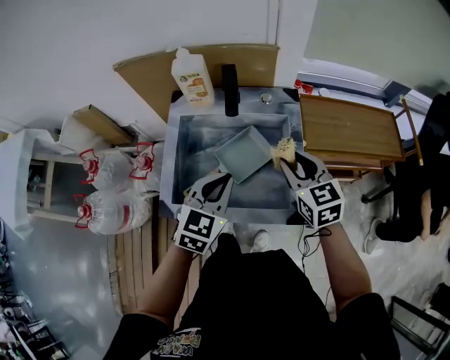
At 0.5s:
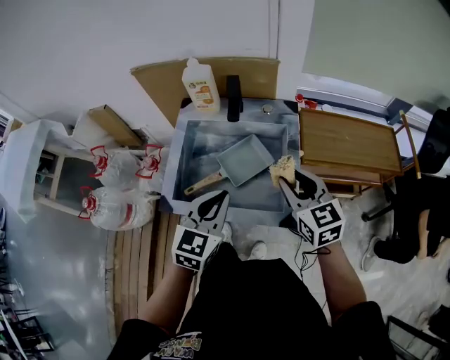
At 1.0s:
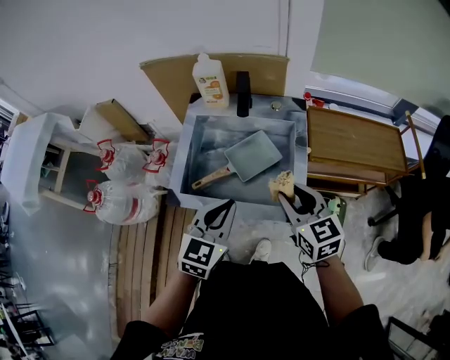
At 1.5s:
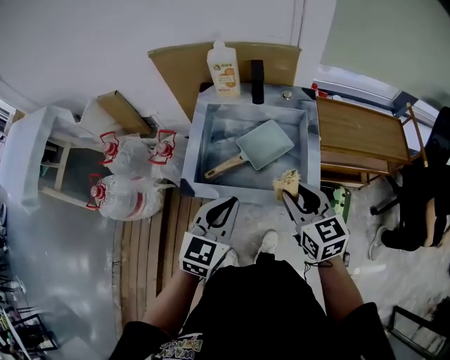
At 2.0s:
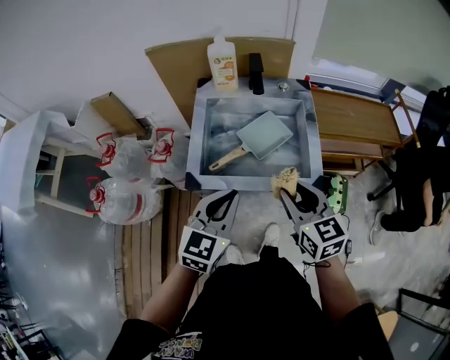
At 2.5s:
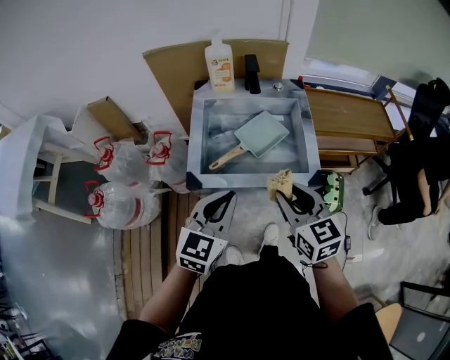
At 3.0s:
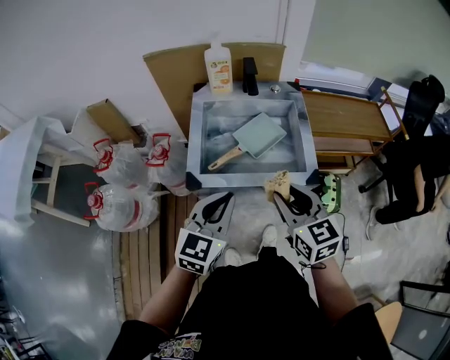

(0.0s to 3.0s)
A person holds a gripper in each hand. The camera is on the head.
0.0s - 1.5s: The two grippers go roughly 15 cm backward and to the left.
1.5s - 3.0s: Both grippers travel together backward and to the left, approximately 10 cm.

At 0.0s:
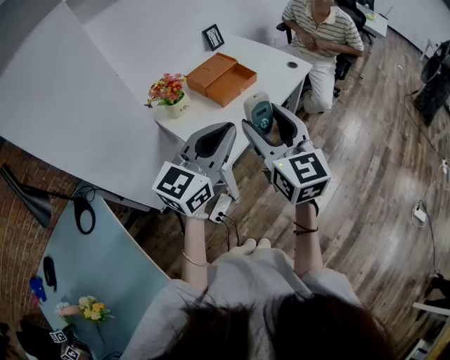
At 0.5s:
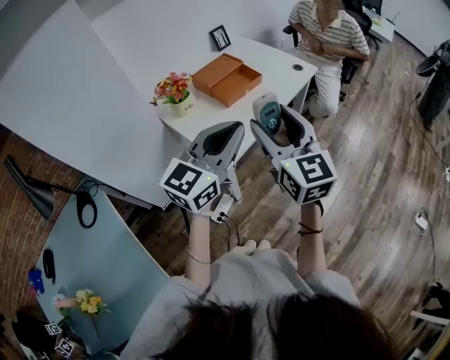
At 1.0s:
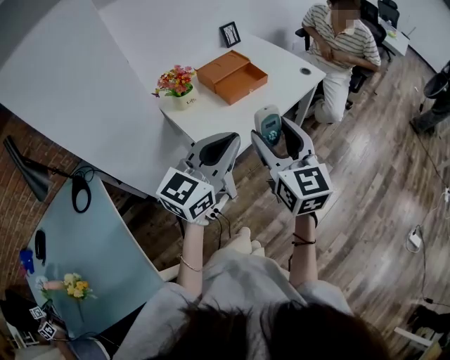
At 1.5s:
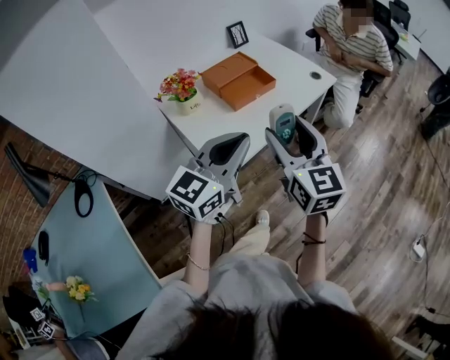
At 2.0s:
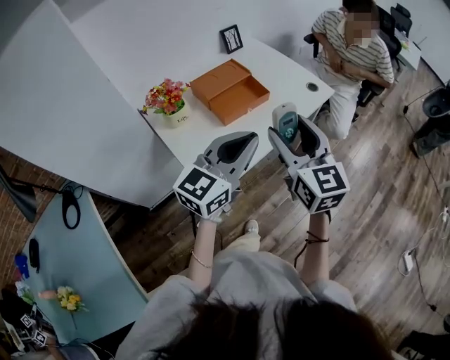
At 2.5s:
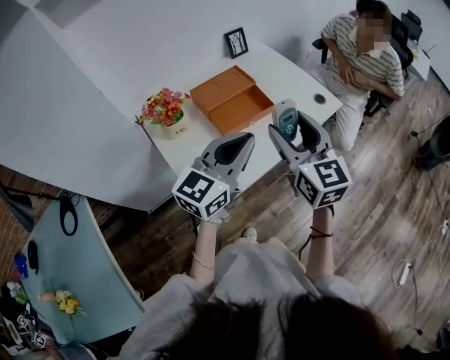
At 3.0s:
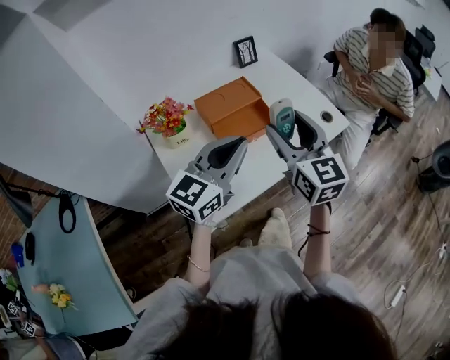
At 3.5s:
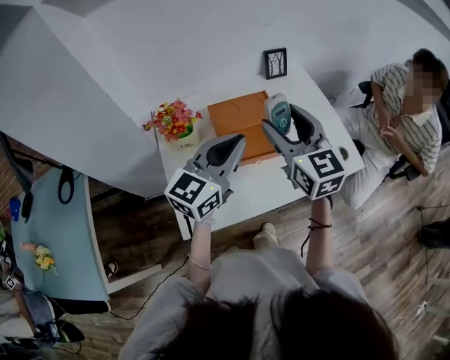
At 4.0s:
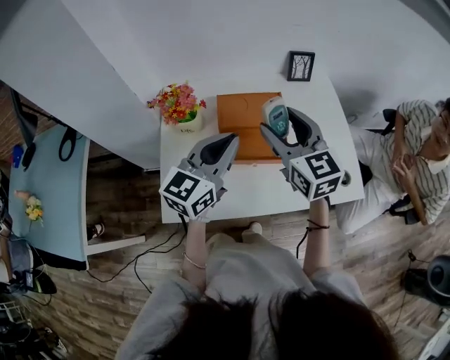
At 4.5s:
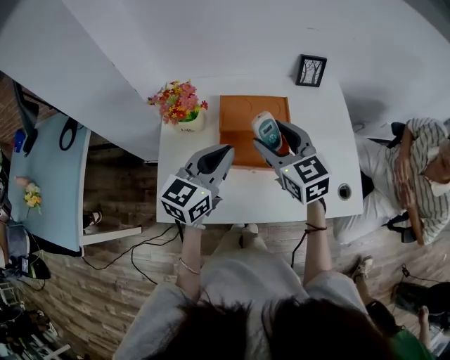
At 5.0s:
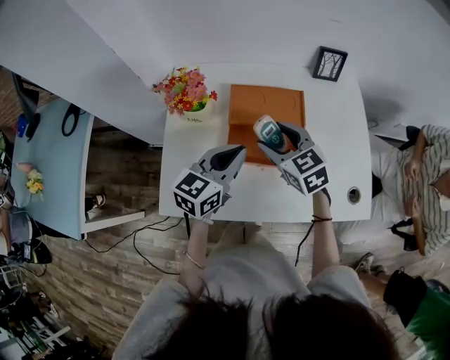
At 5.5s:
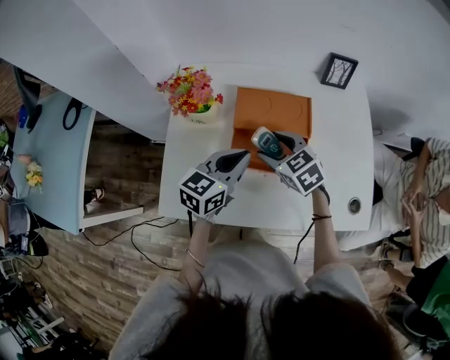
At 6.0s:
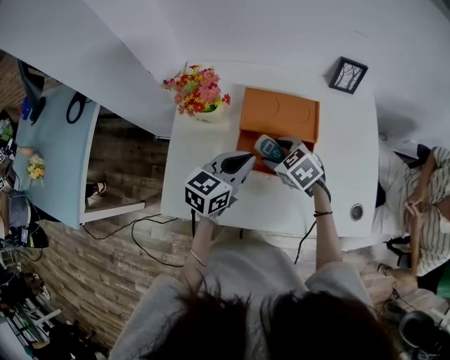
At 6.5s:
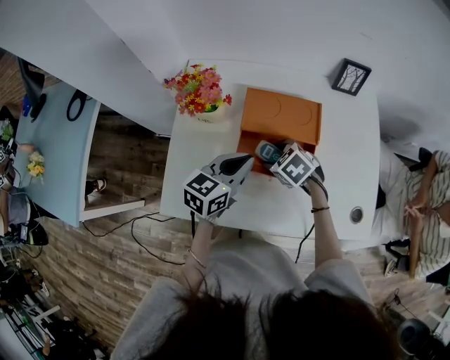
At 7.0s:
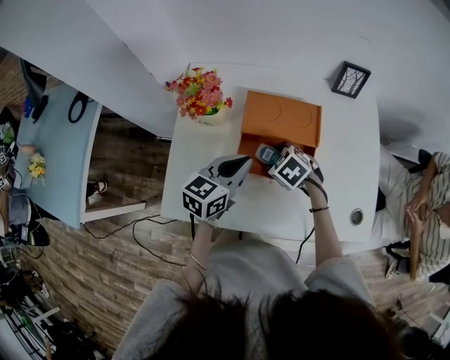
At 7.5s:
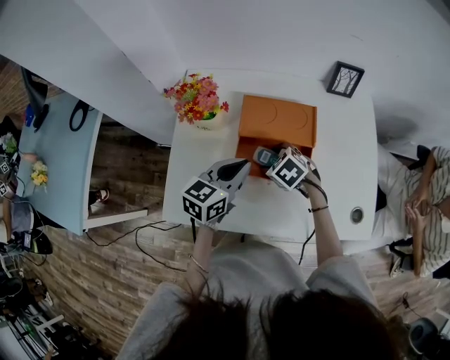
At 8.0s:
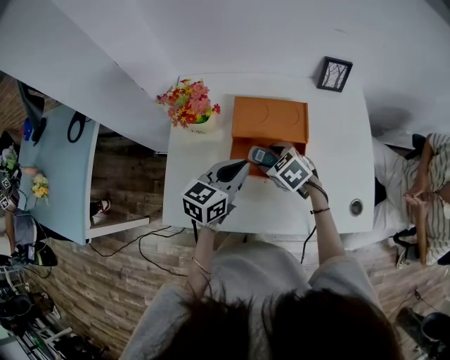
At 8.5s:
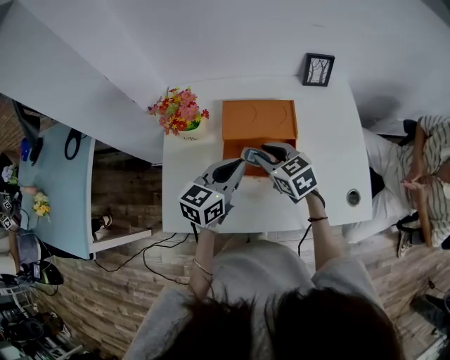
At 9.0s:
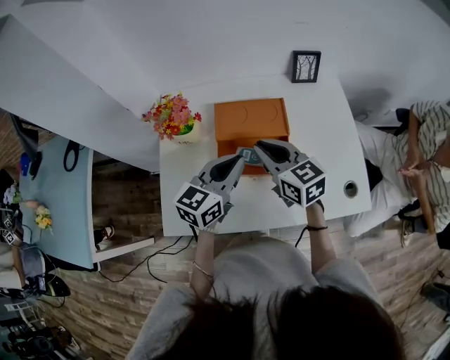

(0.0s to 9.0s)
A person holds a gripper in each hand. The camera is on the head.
0.0s - 2.0s: The two grippers go some 15 cm forward.
2.0s - 4.5s: The left gripper shifts by roughly 25 cm, and rotates approximately 50 degrees. The right gripper shifts by roughly 35 cm, and rotates approximately 50 degrees.
4.5s - 7.0s: The left gripper travels downward by roughly 10 cm; the right gripper goes approximately 25 cm downward, and tilts its fingers some 50 degrees downward.
7.0s - 9.0s: The right gripper heads upward, covering some 20 cm, angles its fingers upward, by roughly 50 degrees, and closes, while the left gripper moves upward, some 5 cm.

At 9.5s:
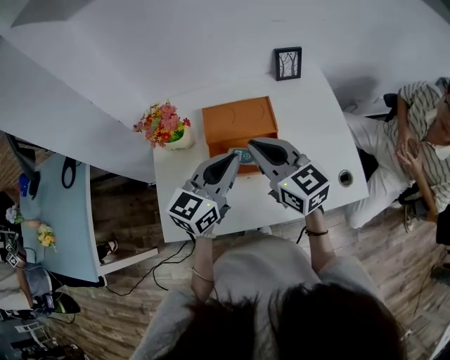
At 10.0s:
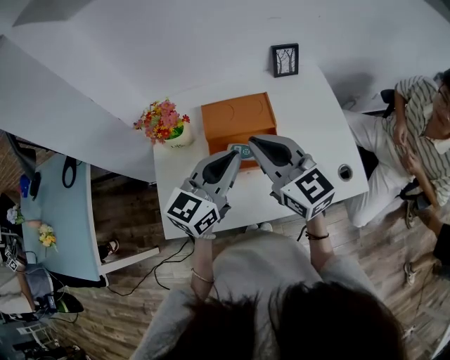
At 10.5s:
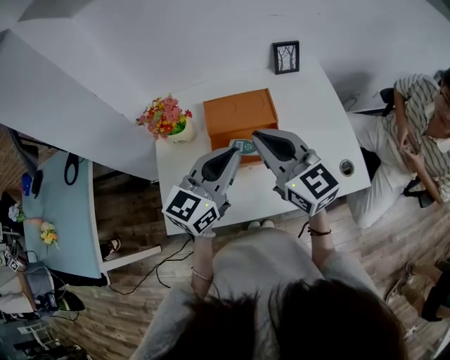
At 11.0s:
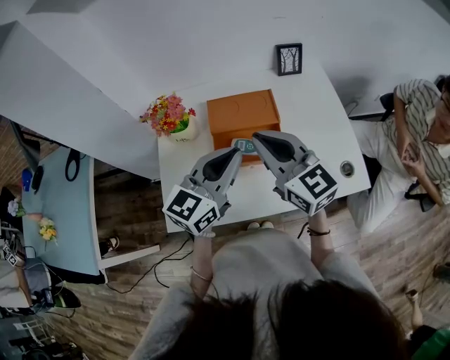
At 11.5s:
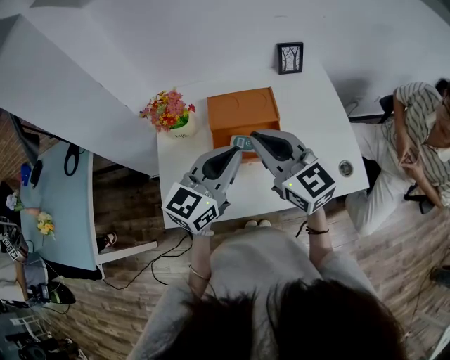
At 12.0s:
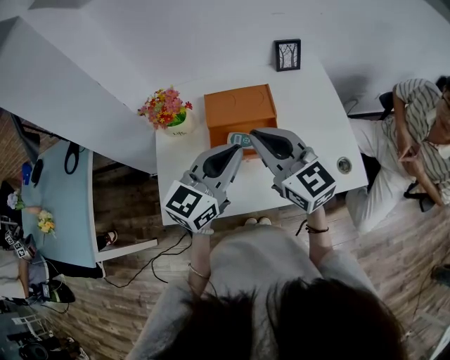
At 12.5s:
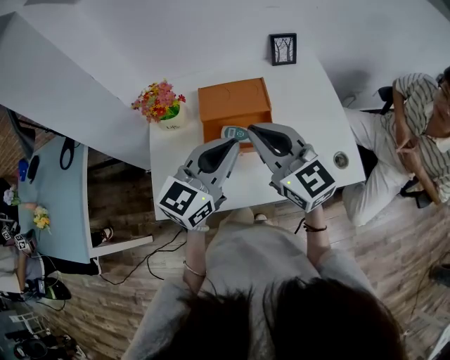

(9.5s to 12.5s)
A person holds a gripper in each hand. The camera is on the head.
9.5s - 11.0s: The right gripper ends up approximately 5 cm from where it was. Meanwhile the left gripper moves roughly 5 cm.
11.0s - 12.5s: The grippers make only small movements.

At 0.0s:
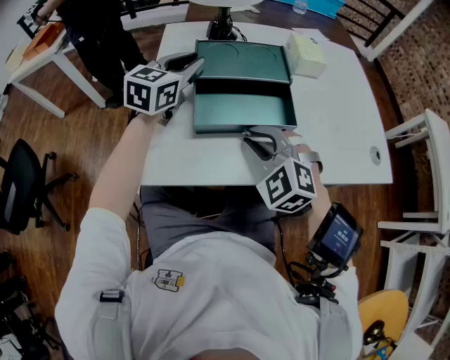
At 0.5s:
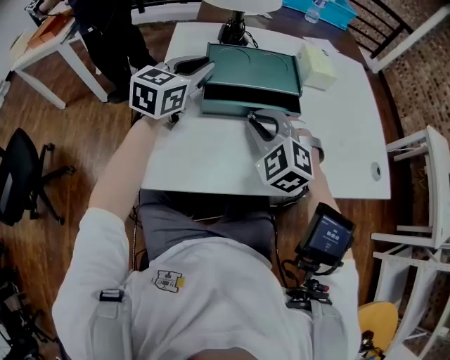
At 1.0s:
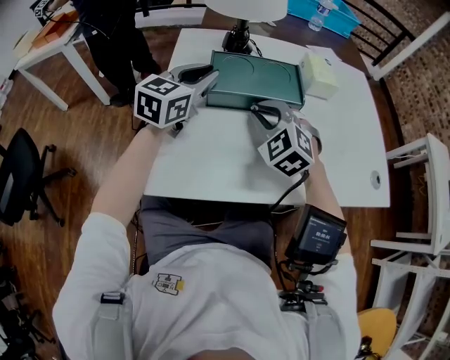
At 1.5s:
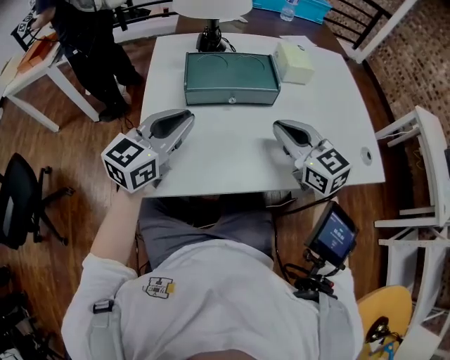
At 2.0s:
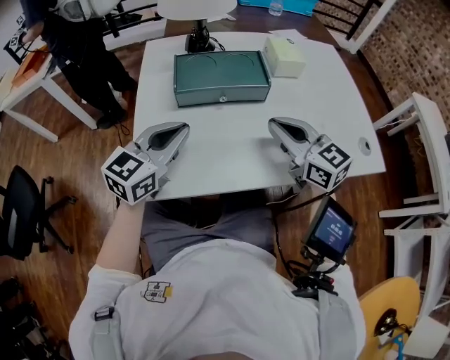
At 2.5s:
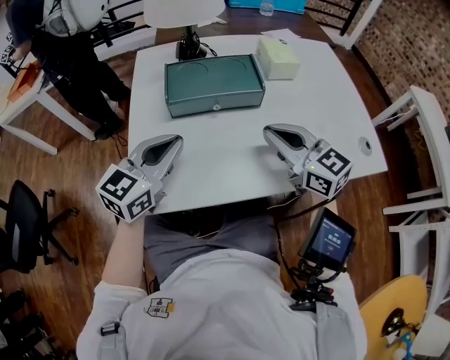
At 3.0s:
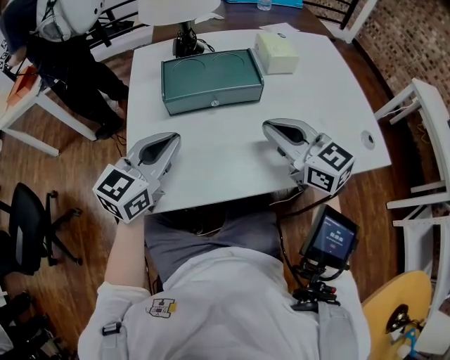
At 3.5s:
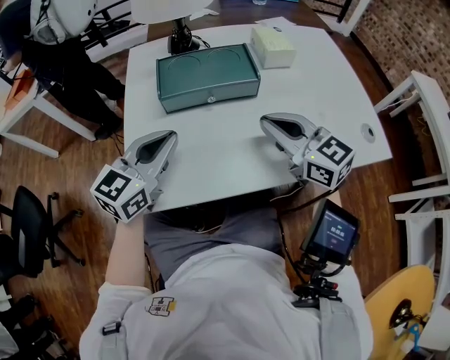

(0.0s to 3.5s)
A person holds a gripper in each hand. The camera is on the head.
0.0s - 2.0s: The left gripper goes roughly 15 cm backward. Meanwhile the right gripper shifts some 10 cm to the right and upward, reaches about 10 cm forward, then returns, and rotates around the line of its fingers by about 50 degrees, clockwise from behind.
2.0s - 3.5s: Neither gripper changes place.

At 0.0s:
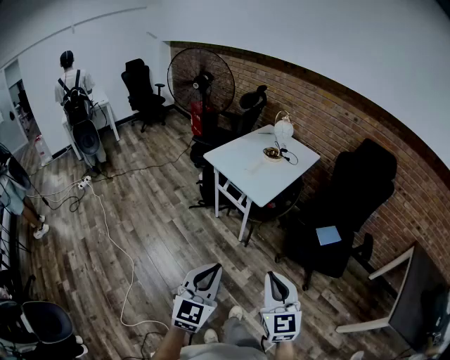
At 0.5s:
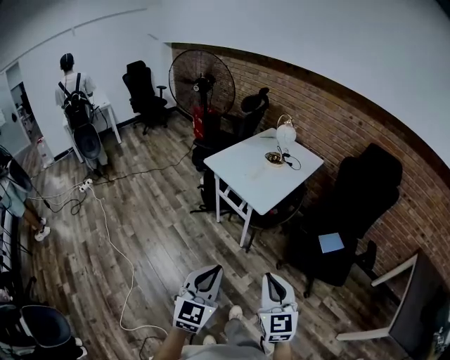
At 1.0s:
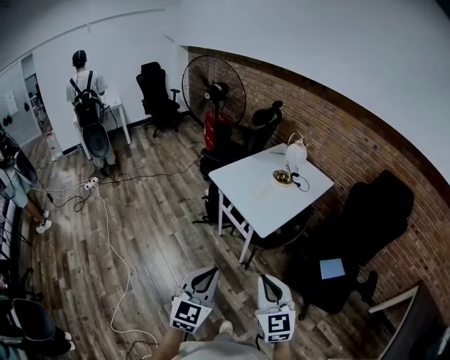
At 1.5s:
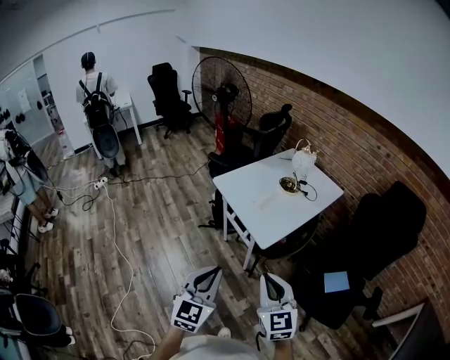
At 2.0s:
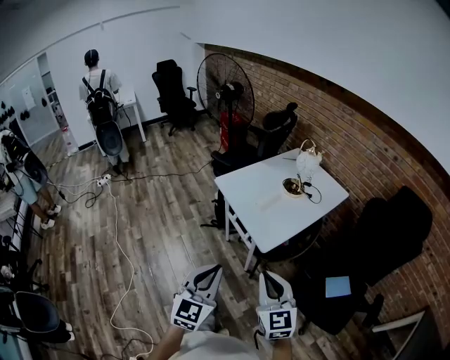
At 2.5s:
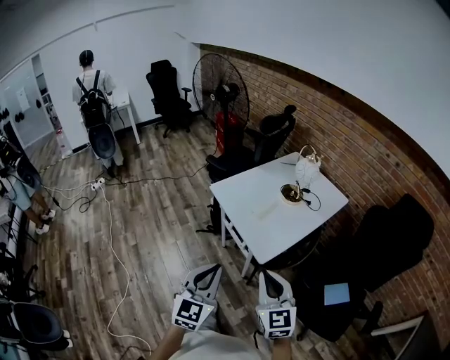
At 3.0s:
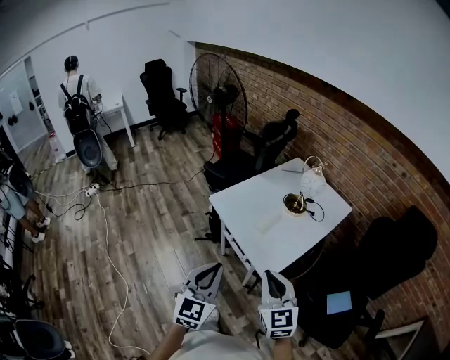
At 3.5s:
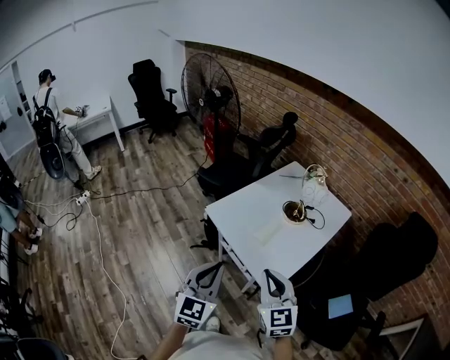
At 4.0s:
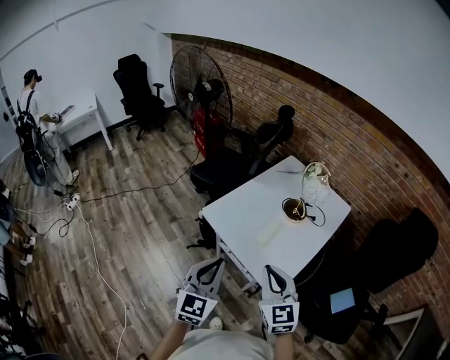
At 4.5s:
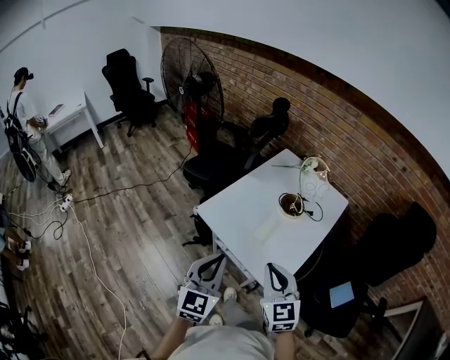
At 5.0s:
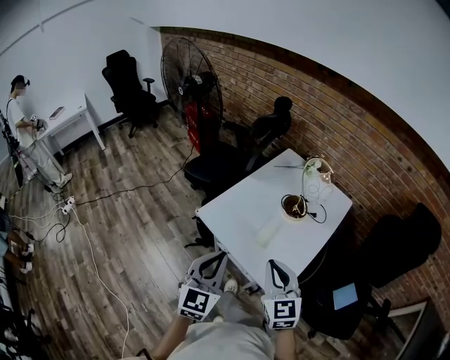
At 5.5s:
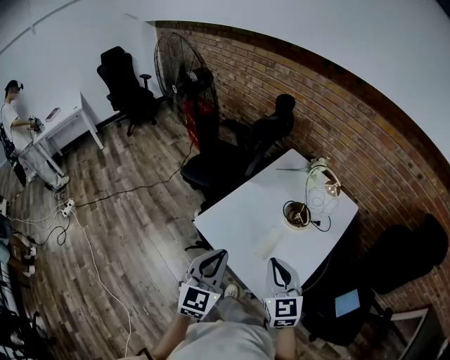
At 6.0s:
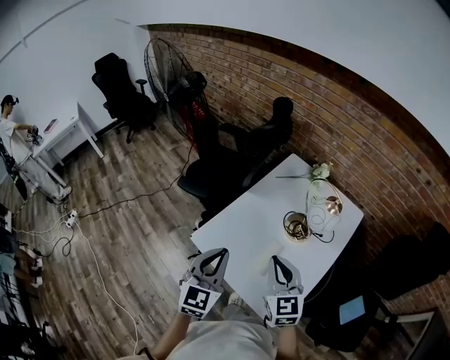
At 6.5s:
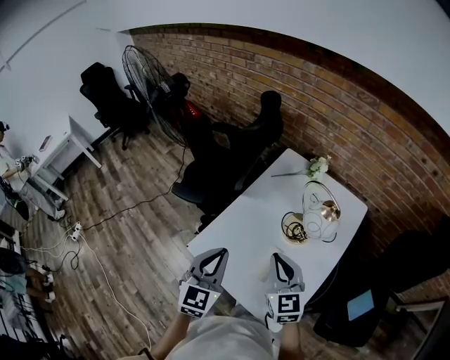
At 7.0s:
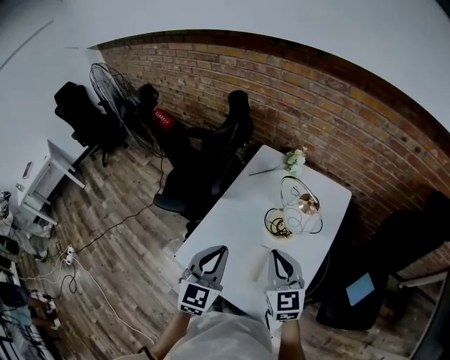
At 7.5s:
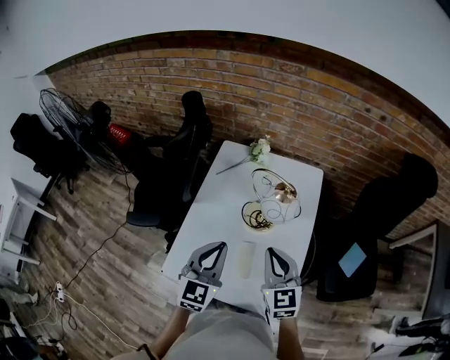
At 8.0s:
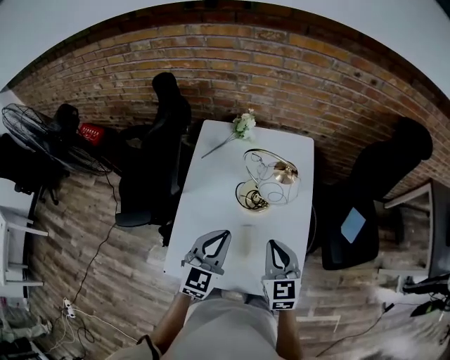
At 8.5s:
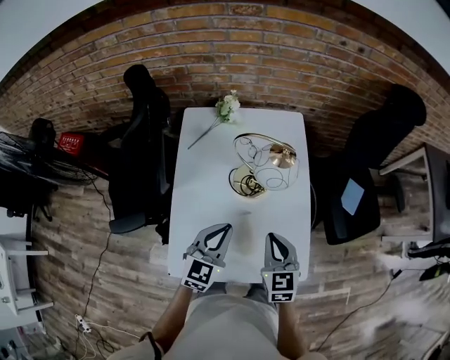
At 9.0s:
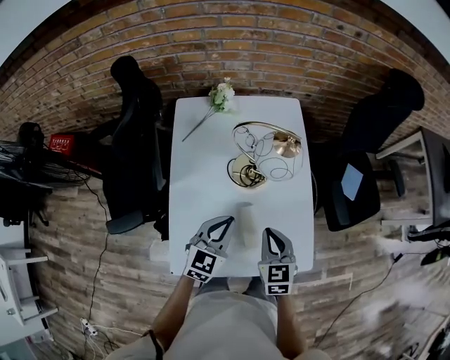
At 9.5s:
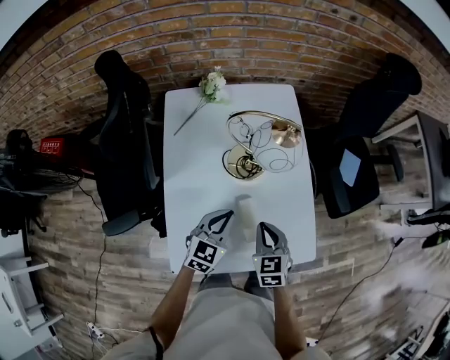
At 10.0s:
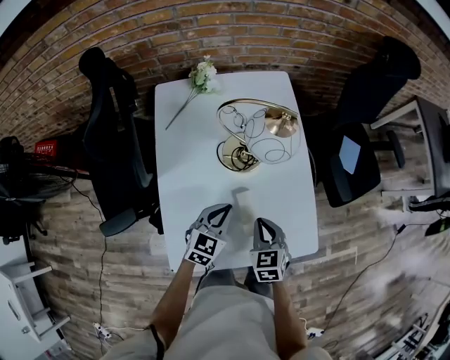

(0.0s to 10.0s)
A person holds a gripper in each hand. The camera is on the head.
0.0s - 2.0s: The two grippers go roughly 30 cm forward.
2.0s - 4.0s: Both grippers move forward, about 30 cm.
4.0s - 6.0s: The two grippers go roughly 25 cm forward.
6.0s - 8.0s: The right gripper shifts by approximately 10 cm, and swivels about 40 degrees; the left gripper ends up roughly 20 cm from where it was, and changes its angle by about 40 degrees.
8.0s - 10.0s: The two grippers go roughly 15 cm downward. The right gripper changes its angle by roughly 20 degrees. Meanwhile the left gripper turns by roughly 30 degrees.
